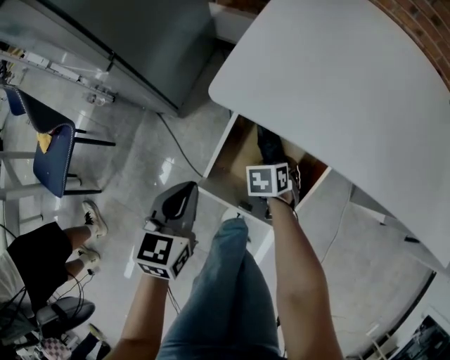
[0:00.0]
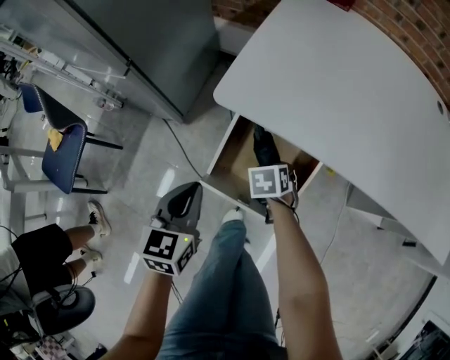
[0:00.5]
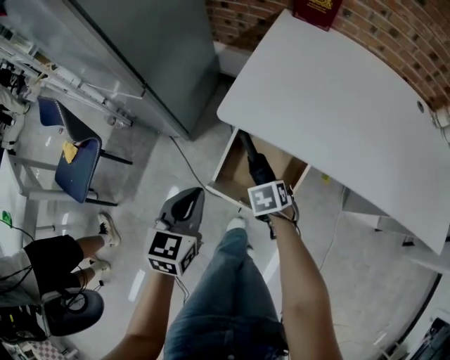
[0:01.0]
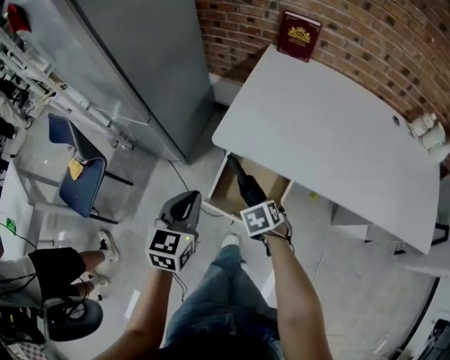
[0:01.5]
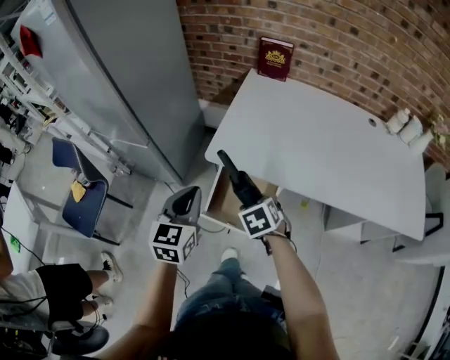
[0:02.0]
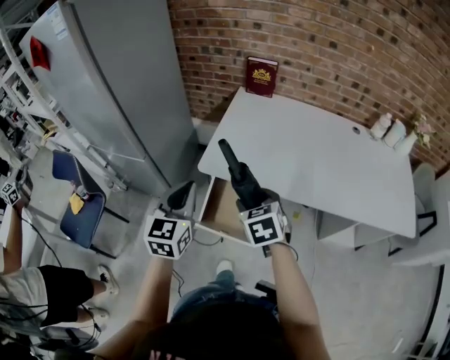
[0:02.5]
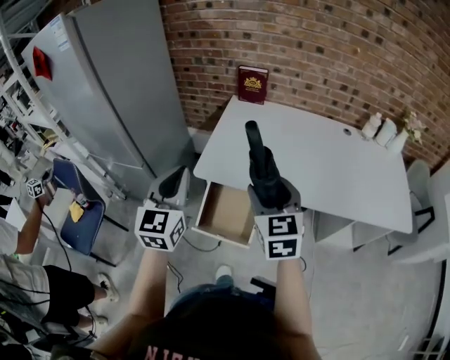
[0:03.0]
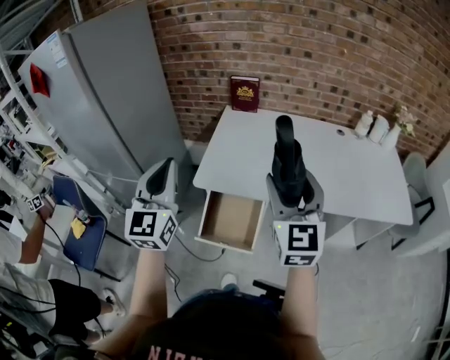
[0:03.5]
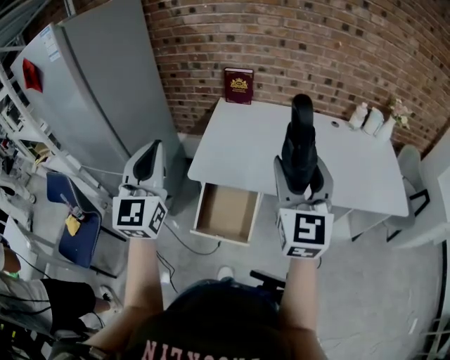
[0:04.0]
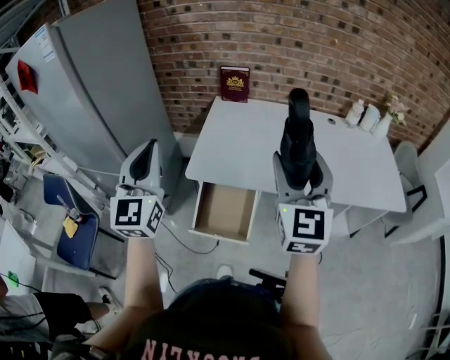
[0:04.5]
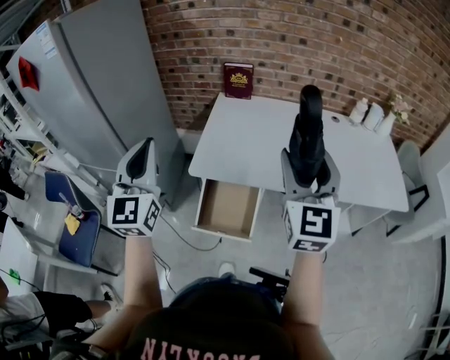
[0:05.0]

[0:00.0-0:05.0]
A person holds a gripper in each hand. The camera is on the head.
0:00.0 to 0:02.5: Both grippers move upward, approximately 40 cm. The left gripper changes its angle by approximately 30 degrees. The right gripper turns by some 30 degrees.
0:02.5 to 0:05.0: The left gripper shifts approximately 15 cm upward, and turns by about 30 degrees; the right gripper goes some 30 cm upward and to the right, and tips its fingers upward by approximately 50 degrees.

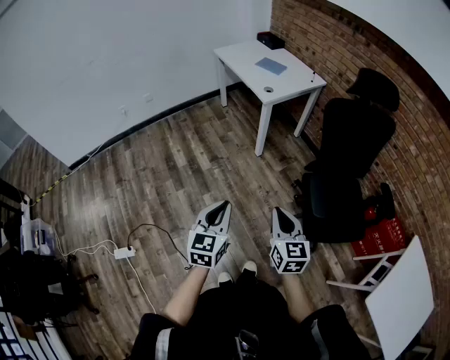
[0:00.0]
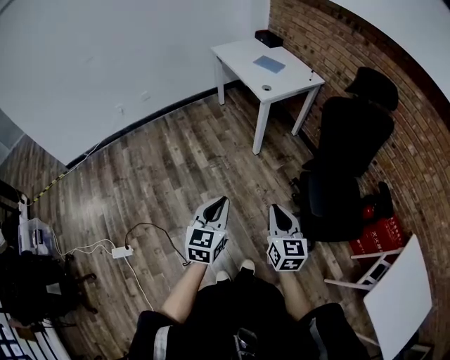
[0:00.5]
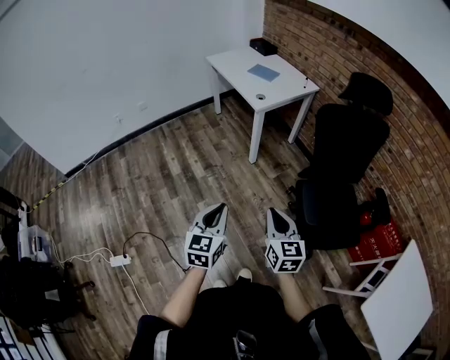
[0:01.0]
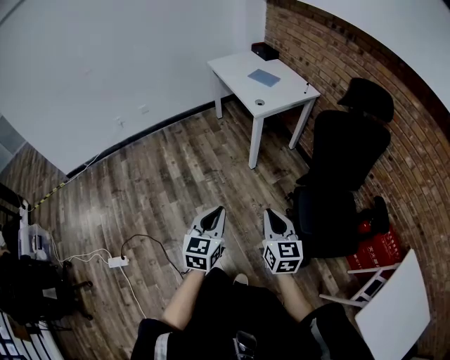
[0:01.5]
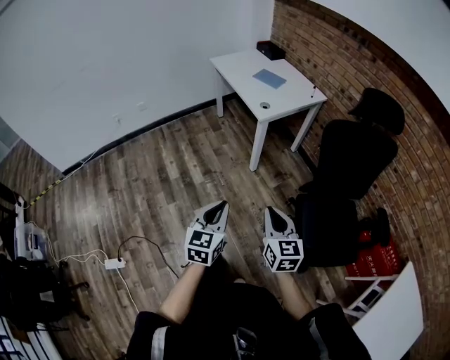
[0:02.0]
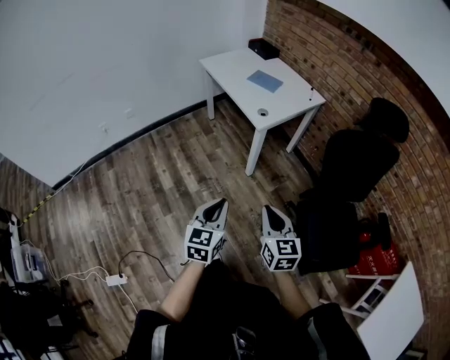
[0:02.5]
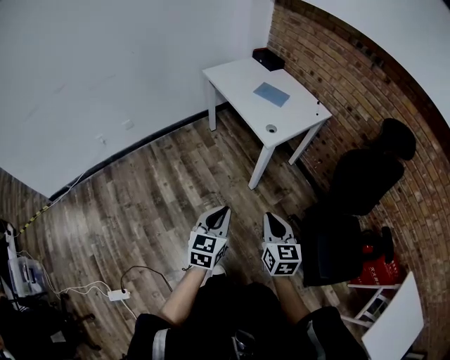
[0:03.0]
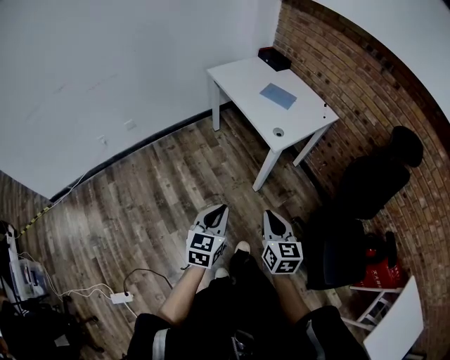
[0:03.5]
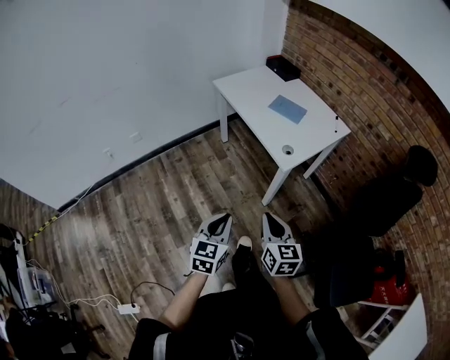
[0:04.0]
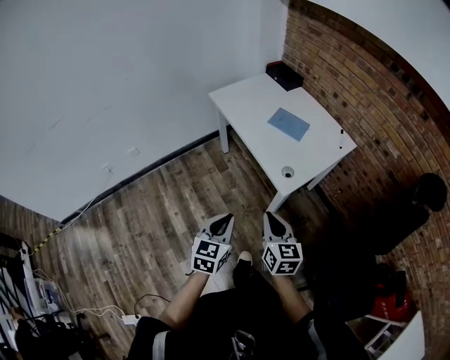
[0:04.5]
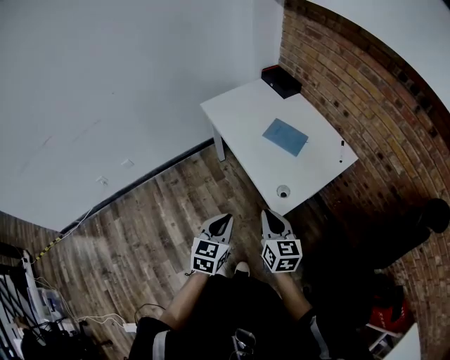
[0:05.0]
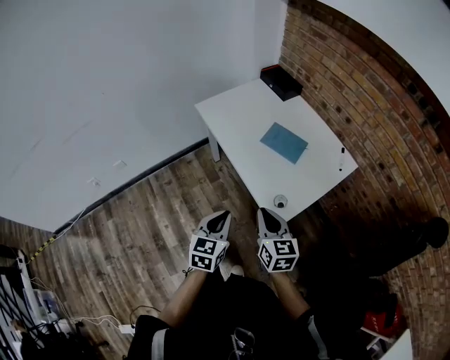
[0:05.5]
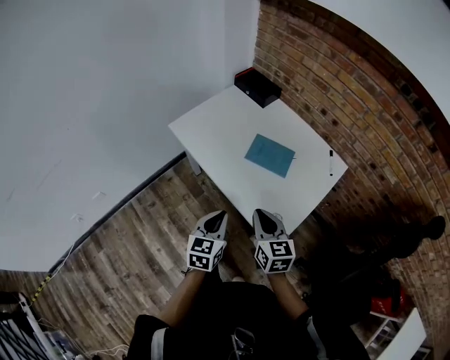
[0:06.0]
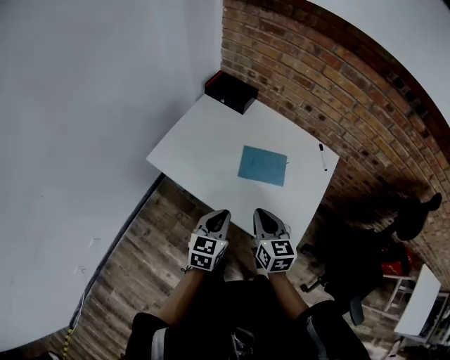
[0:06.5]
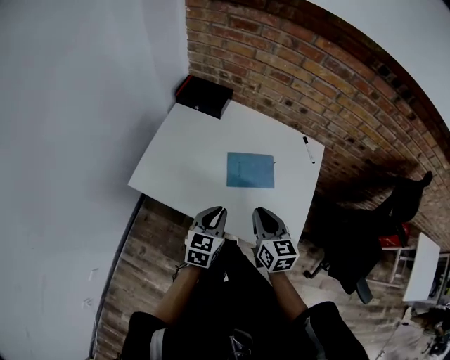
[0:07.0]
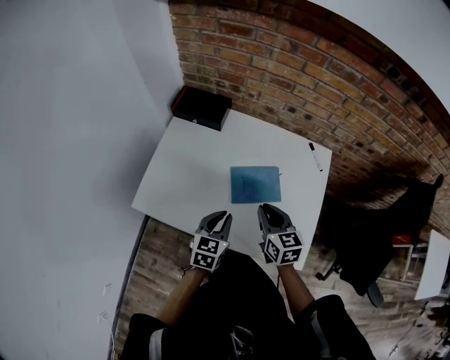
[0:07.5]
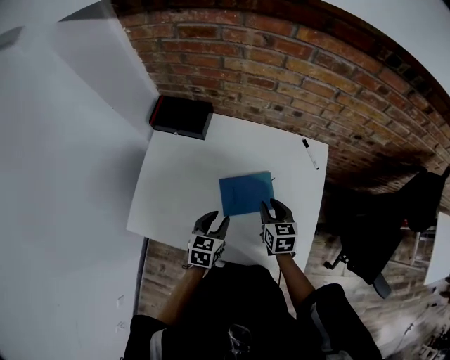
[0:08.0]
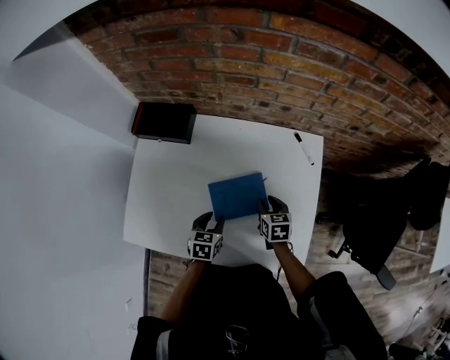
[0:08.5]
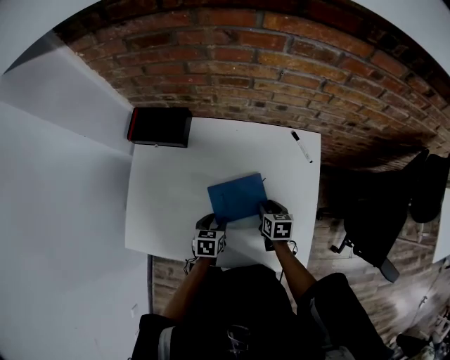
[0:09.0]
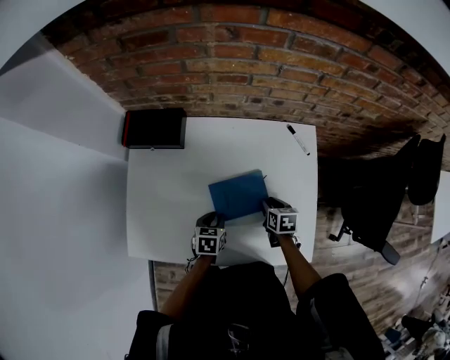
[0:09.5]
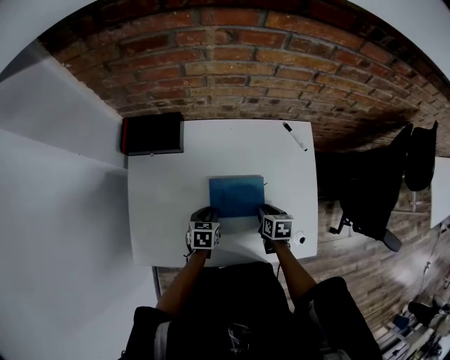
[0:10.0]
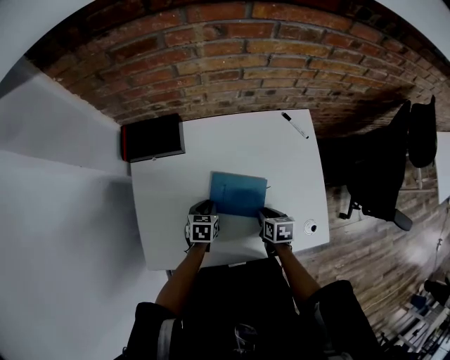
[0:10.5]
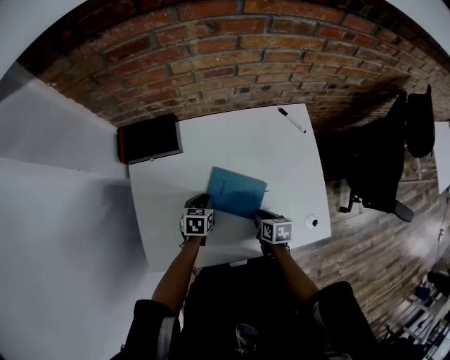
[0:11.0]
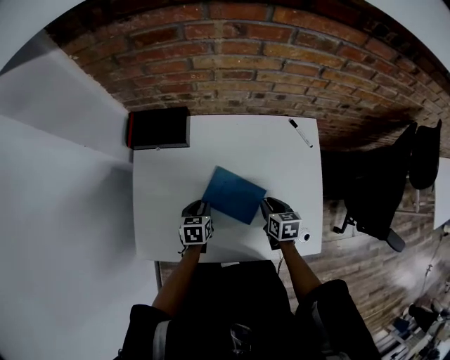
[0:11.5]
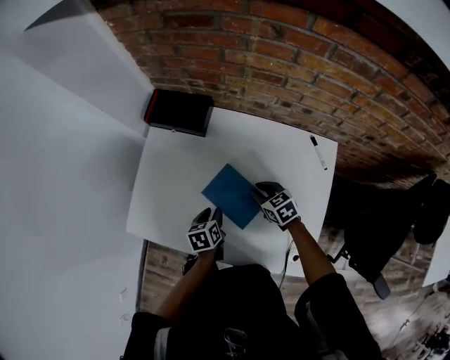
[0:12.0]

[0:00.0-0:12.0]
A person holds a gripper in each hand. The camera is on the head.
0:00.0 to 0:02.0: Both grippers travel together forward, about 15 cm.
0:02.0 to 0:04.0: Both grippers move forward and to the left, roughly 35 cm.
0:04.0 to 0:06.0: The two grippers travel together, forward, some 50 cm.
0:06.0 to 0:08.0: The left gripper ends up some 35 cm from where it was, turns by about 40 degrees, and opens up. Meanwhile the right gripper shifts by approximately 30 cm, swivels about 40 degrees, and opens.
0:08.0 to 0:10.0: The left gripper is displaced downward and forward by about 10 cm, while the right gripper is displaced downward by some 10 cm, and rotates roughly 30 degrees.
0:10.0 to 0:12.0: The left gripper rotates some 40 degrees, while the right gripper changes place by roughly 10 cm, and twists some 40 degrees counterclockwise, seen from behind.

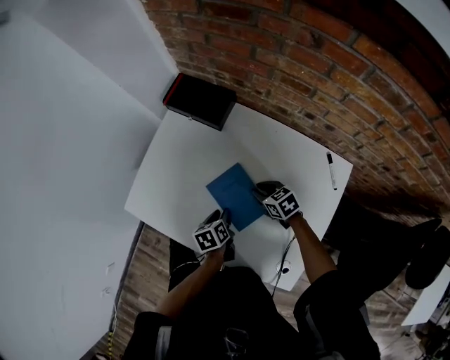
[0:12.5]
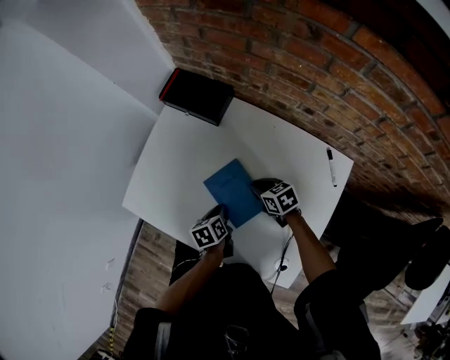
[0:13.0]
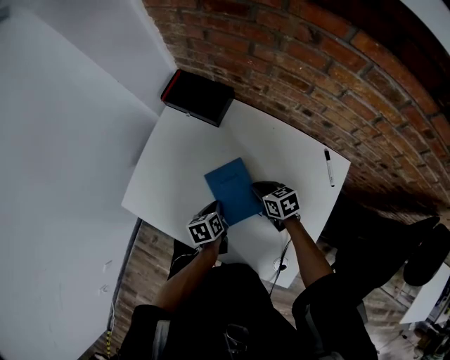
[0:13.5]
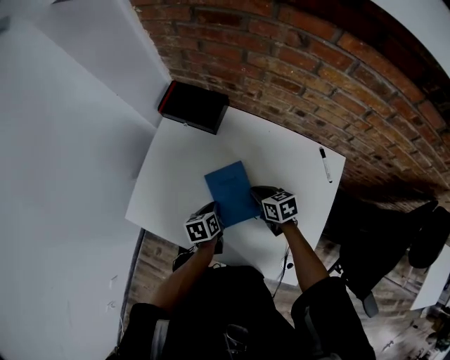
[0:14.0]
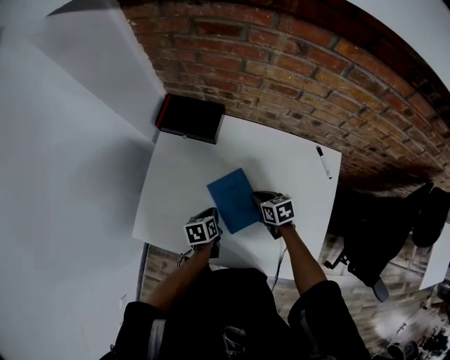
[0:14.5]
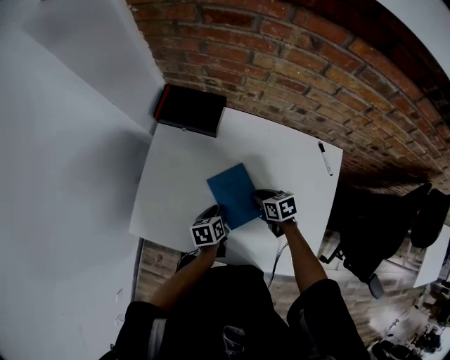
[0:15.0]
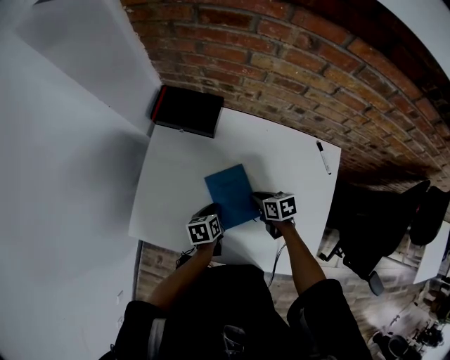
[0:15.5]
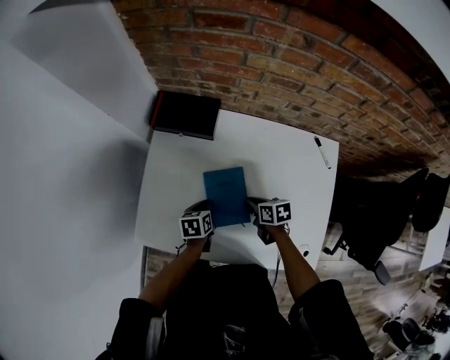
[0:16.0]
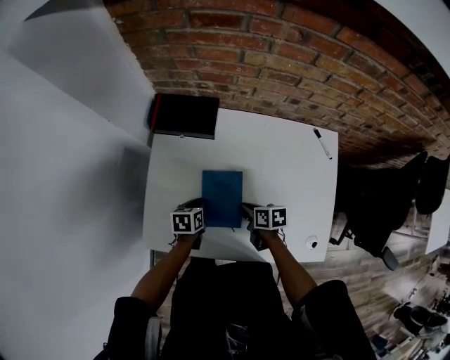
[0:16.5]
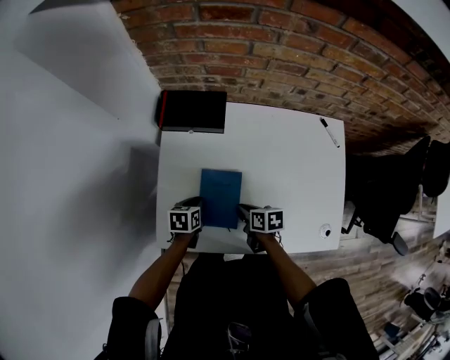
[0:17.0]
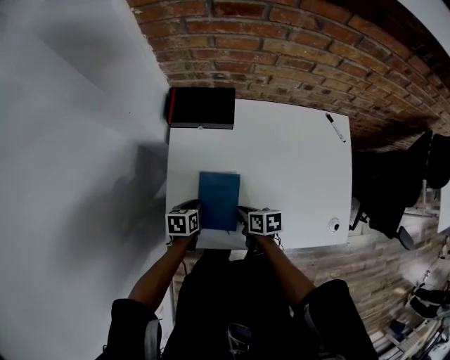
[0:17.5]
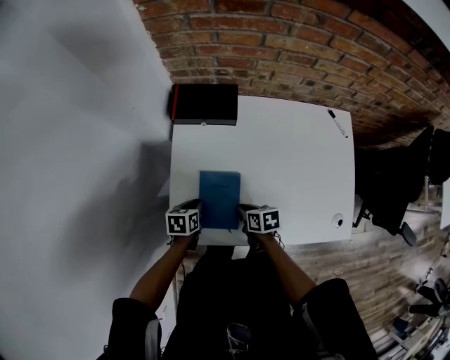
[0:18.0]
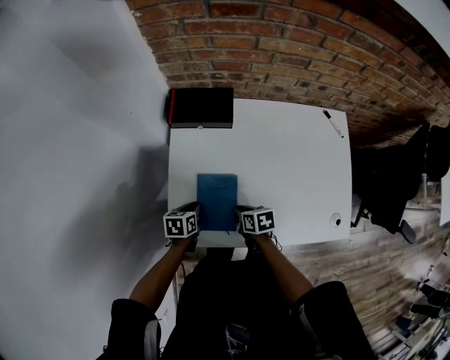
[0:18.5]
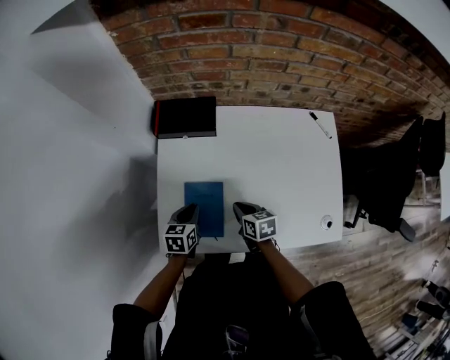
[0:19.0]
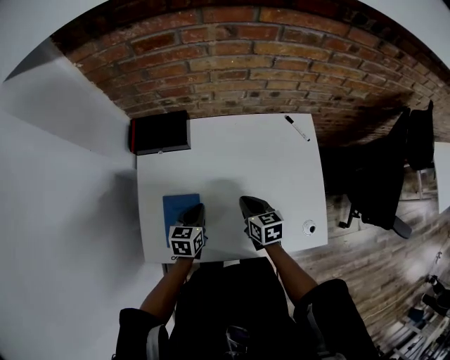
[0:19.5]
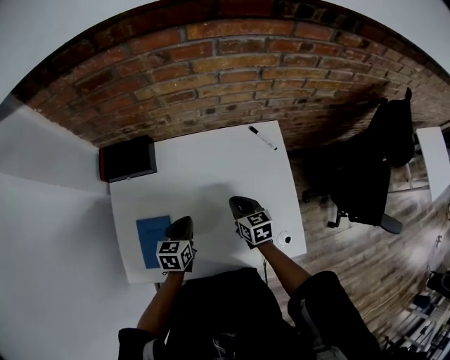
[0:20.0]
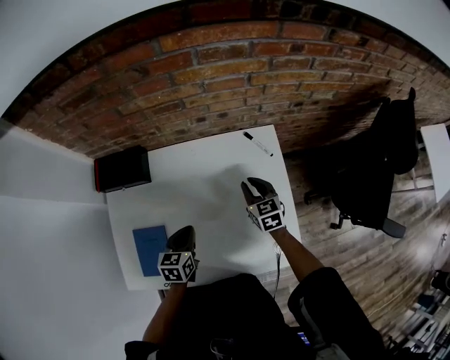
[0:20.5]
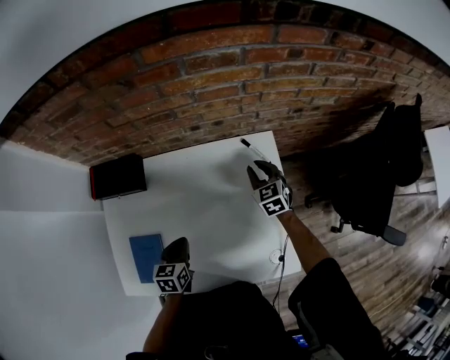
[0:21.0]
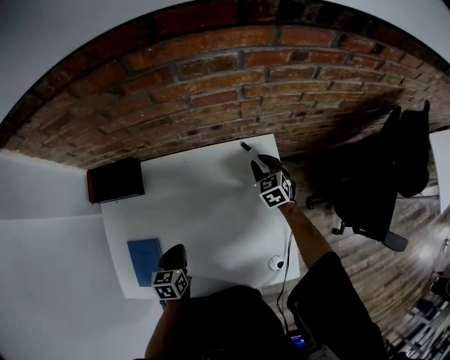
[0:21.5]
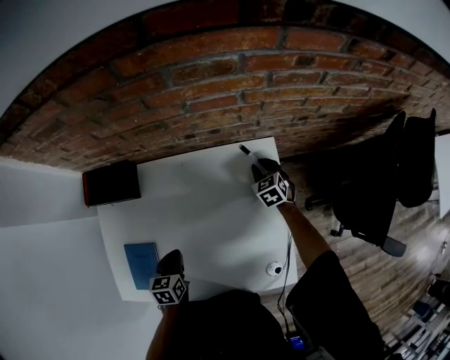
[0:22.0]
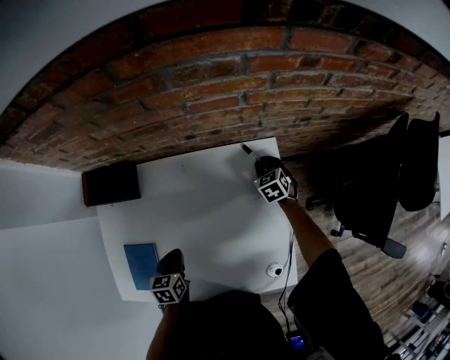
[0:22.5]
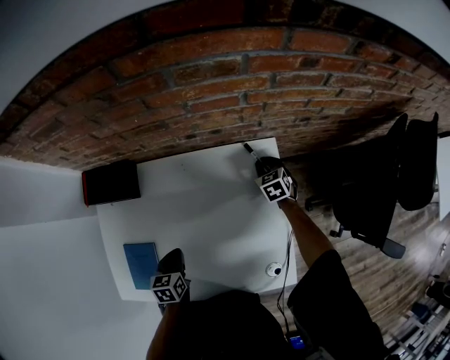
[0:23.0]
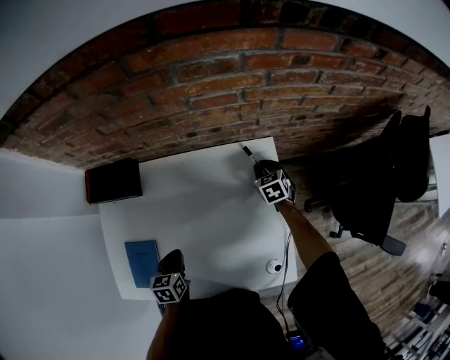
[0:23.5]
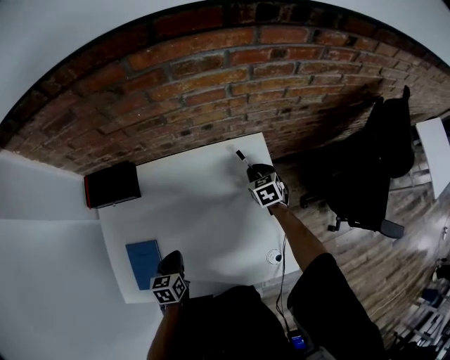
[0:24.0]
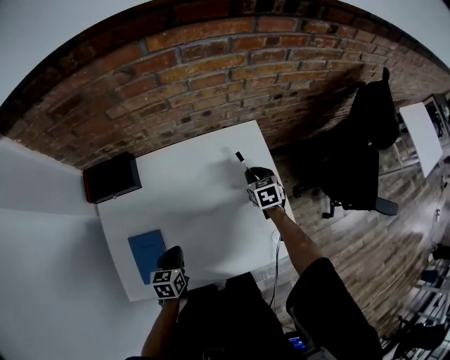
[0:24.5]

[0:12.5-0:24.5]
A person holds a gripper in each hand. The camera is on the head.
0:12.5 to 0:14.5: The right gripper turns by approximately 30 degrees. Meanwhile the left gripper goes some 5 cm forward, rotates roughly 20 degrees, and closes its fingers.
0:14.5 to 0:16.5: Both grippers move to the left, approximately 10 cm. The right gripper changes its angle by roughly 30 degrees.
0:16.5 to 0:18.5: The grippers both shift to the left by about 15 cm.
0:18.5 to 0:20.5: The left gripper goes some 30 cm to the right, and rotates some 20 degrees. The right gripper heads to the right and forward, covering roughly 40 cm, and rotates approximately 40 degrees.
0:20.5 to 0:22.5: The right gripper heads forward, downward and to the right, covering some 20 cm, and changes its angle by roughly 20 degrees.
0:22.5 to 0:24.5: The right gripper is displaced backward and upward by approximately 15 cm, and changes its angle by roughly 20 degrees. The left gripper shifts roughly 5 cm backward.
